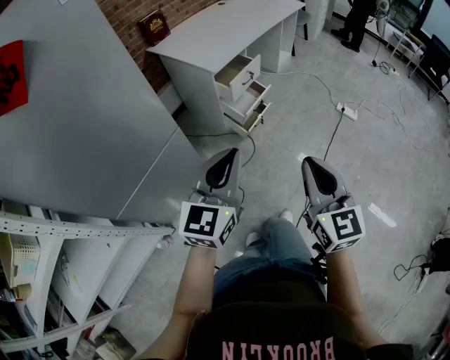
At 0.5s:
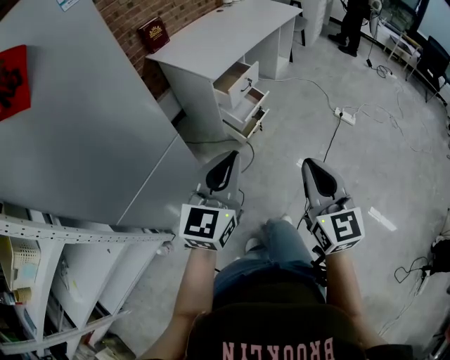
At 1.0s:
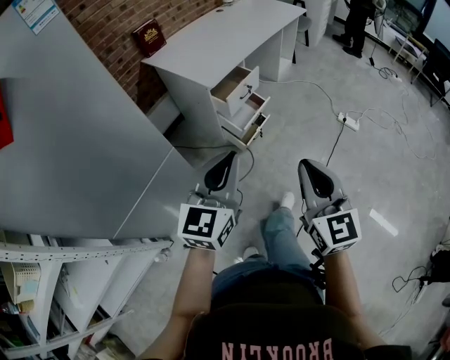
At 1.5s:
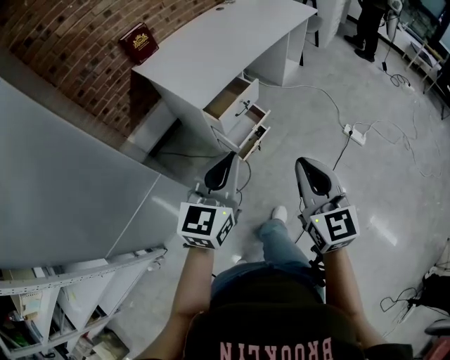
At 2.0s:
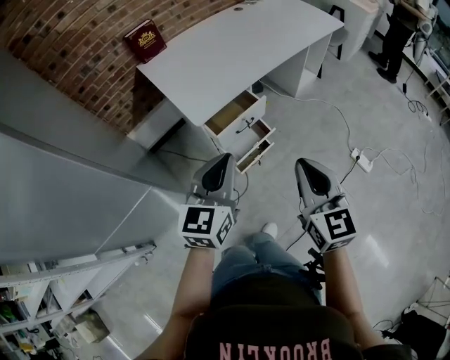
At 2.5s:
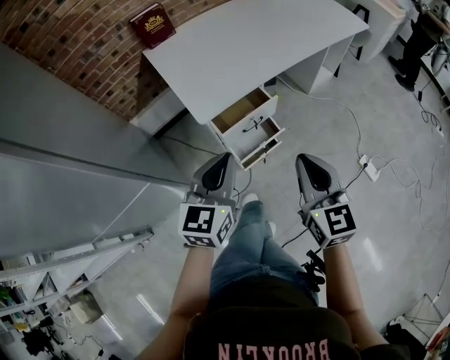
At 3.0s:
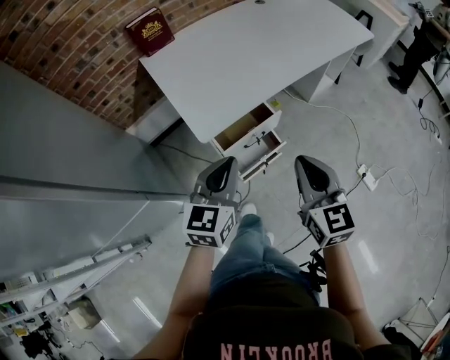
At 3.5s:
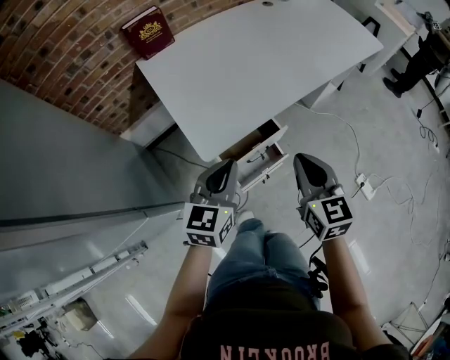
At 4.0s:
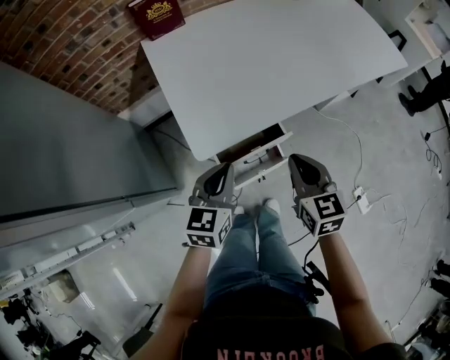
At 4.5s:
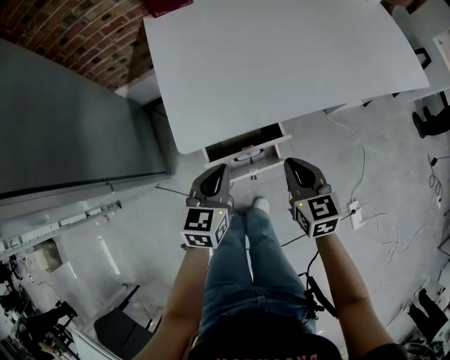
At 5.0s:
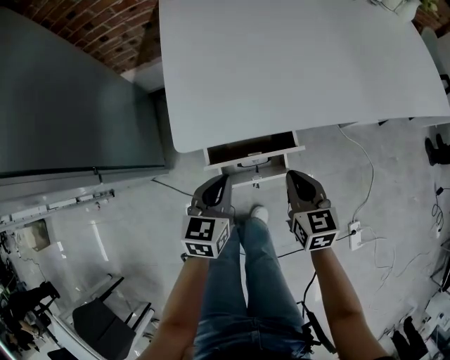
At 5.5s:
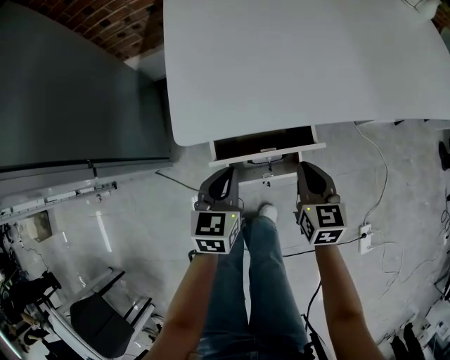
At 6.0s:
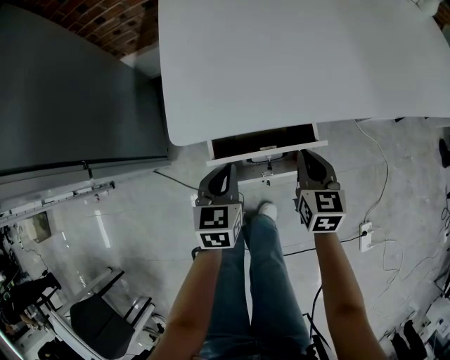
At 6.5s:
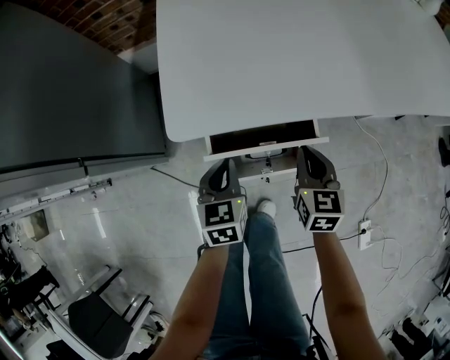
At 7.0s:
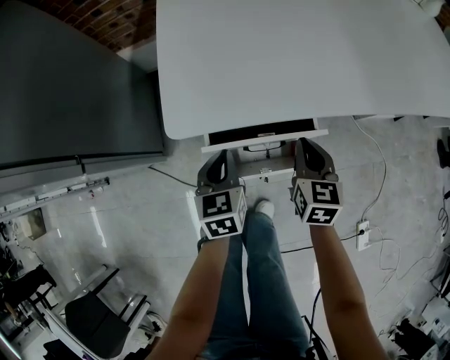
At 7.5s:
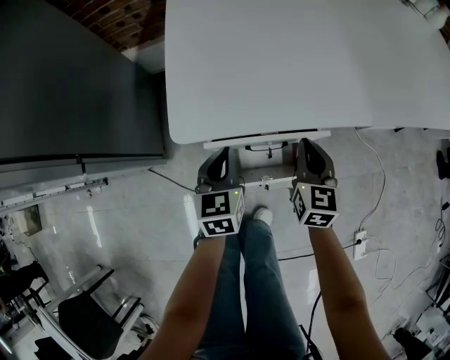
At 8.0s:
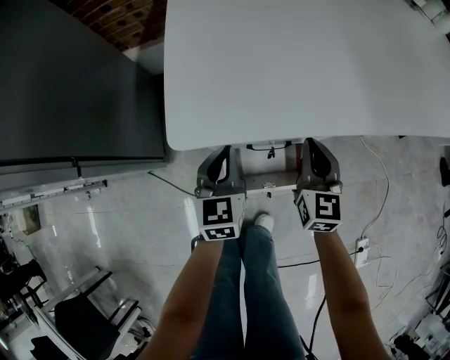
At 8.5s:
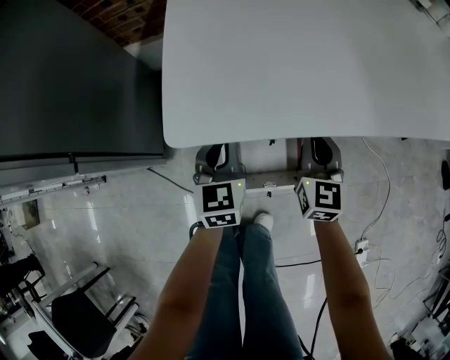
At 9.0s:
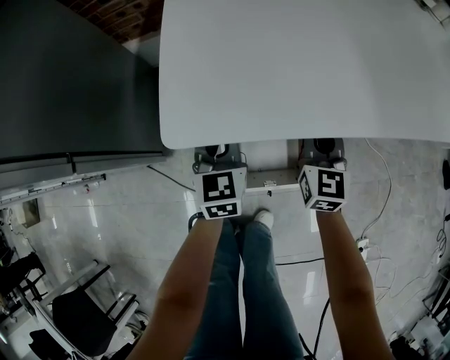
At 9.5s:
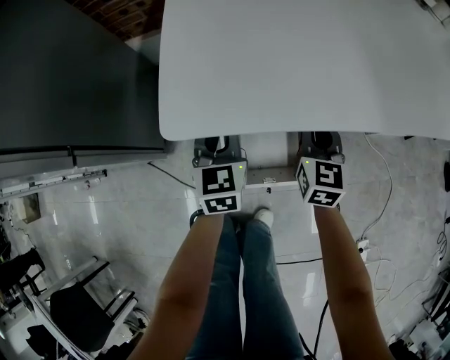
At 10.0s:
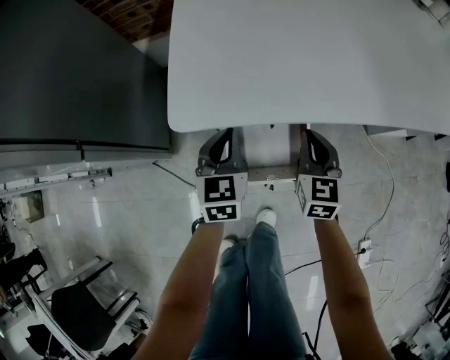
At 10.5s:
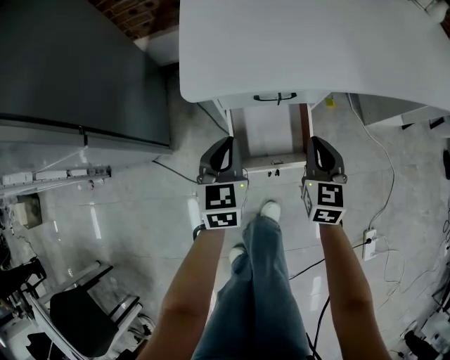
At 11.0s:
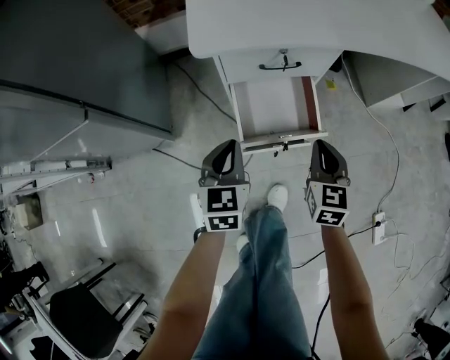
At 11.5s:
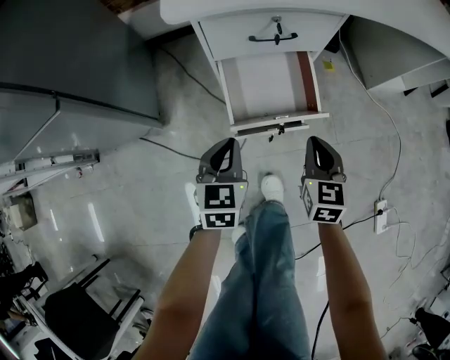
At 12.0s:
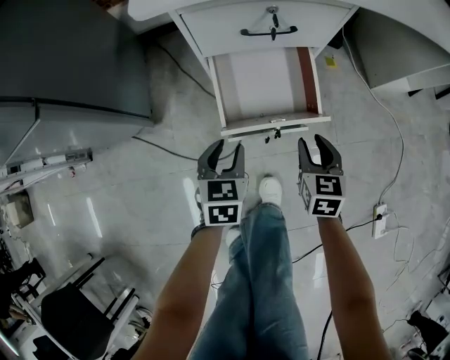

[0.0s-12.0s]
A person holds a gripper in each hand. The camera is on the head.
0.0s to 2.0s: Both grippers travel together forward, some 40 cm.
2.0s to 4.0s: The grippers both shift forward and downward by about 30 cm. The left gripper turns by some 20 degrees. Meanwhile the right gripper changes its angle by roughly 20 degrees.
4.0s to 6.0s: Both grippers travel together downward, some 25 cm. The left gripper turns by about 30 degrees.
6.0s to 8.0s: Both grippers move forward, about 5 cm.
8.0s to 10.0s: The grippers move only a little.
10.0s to 12.0s: The grippers both shift backward and downward by approximately 25 cm. The right gripper opens up. Meanwhile the left gripper opens up.

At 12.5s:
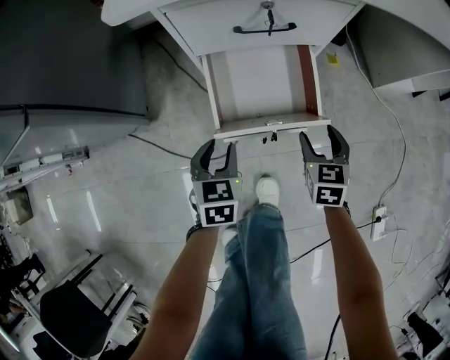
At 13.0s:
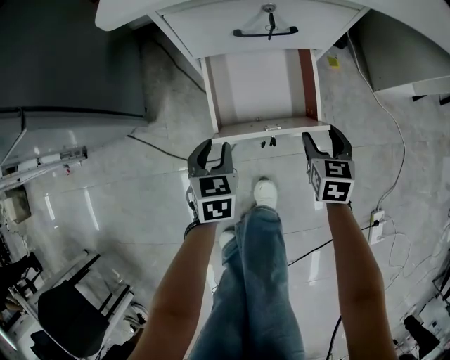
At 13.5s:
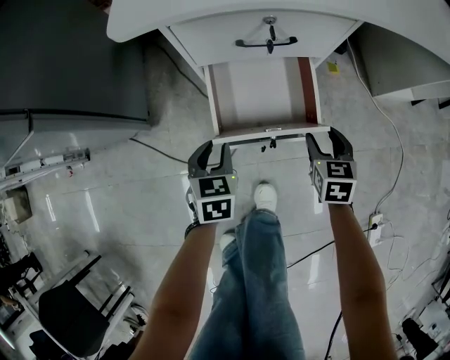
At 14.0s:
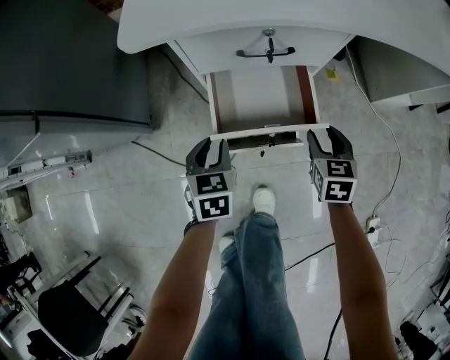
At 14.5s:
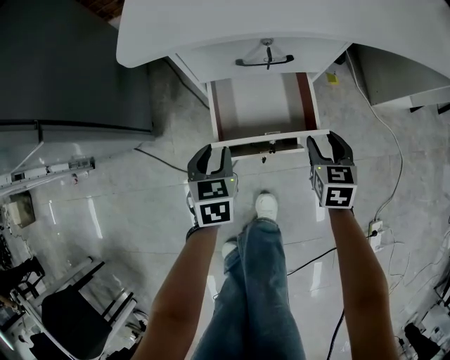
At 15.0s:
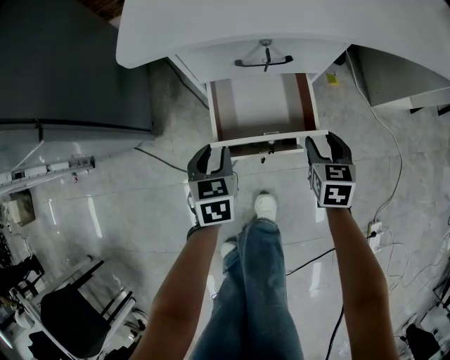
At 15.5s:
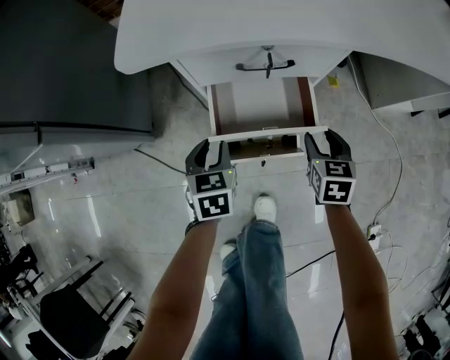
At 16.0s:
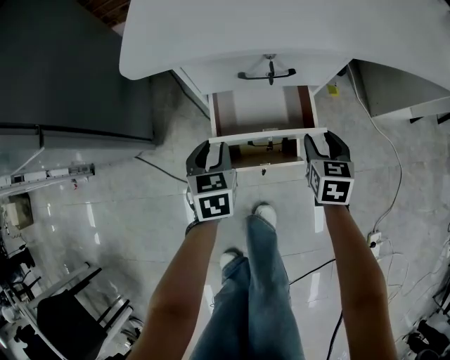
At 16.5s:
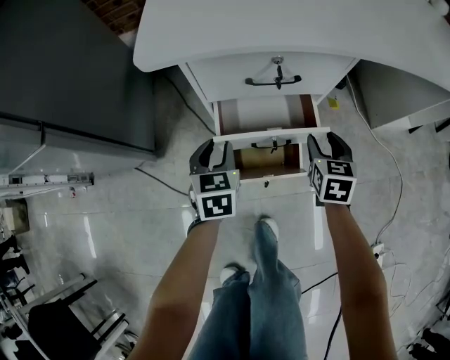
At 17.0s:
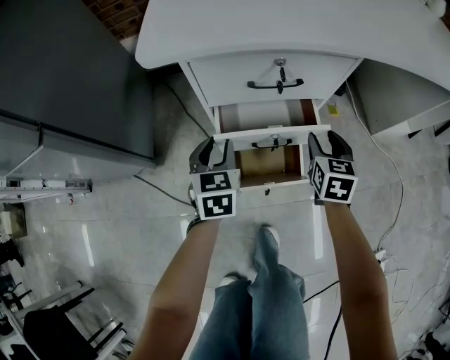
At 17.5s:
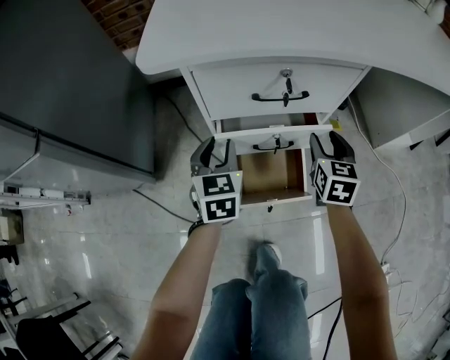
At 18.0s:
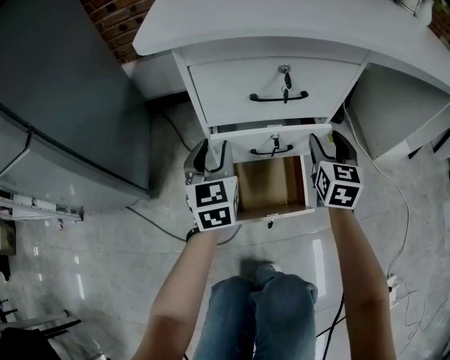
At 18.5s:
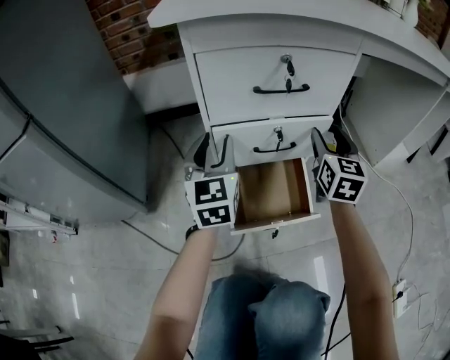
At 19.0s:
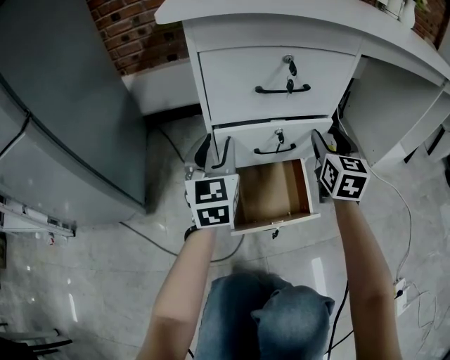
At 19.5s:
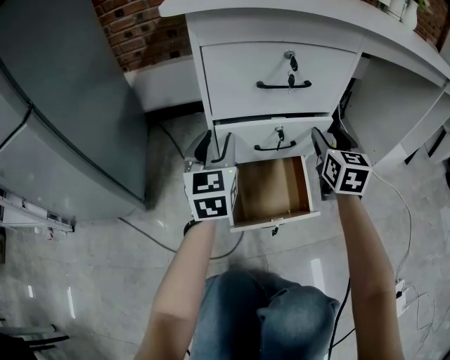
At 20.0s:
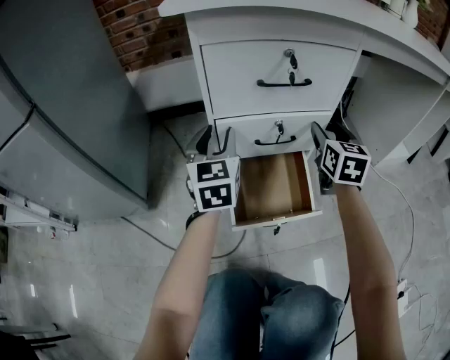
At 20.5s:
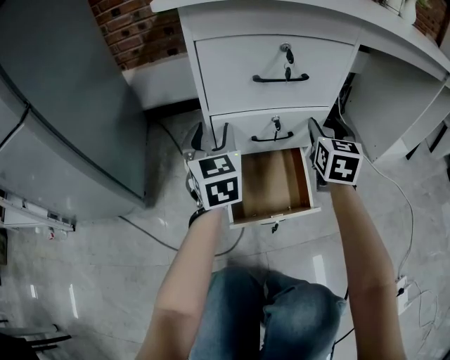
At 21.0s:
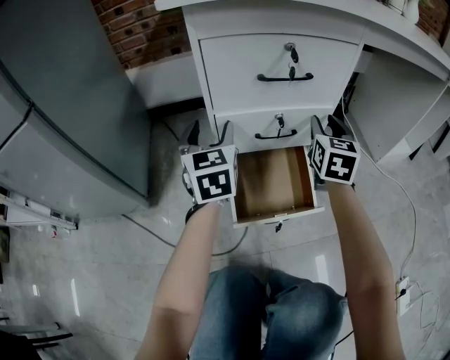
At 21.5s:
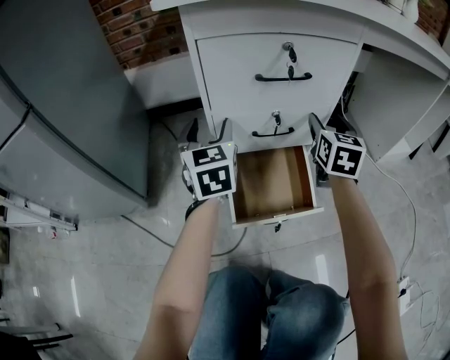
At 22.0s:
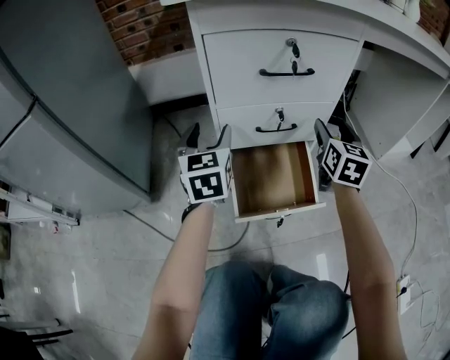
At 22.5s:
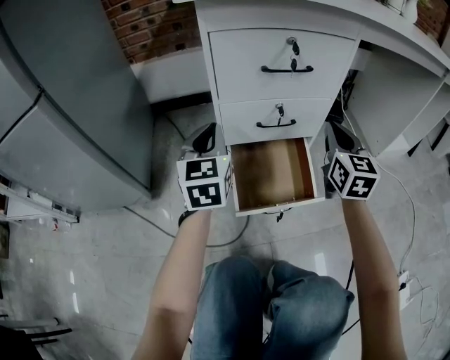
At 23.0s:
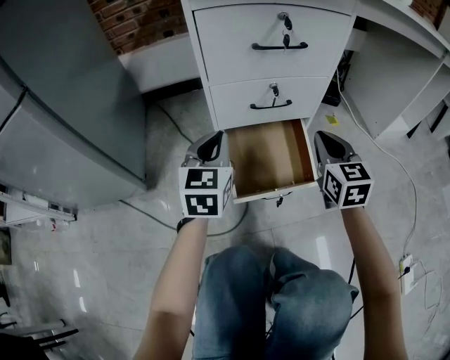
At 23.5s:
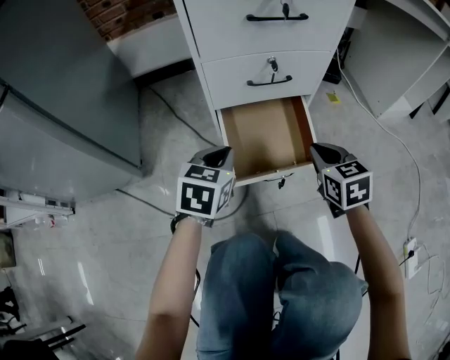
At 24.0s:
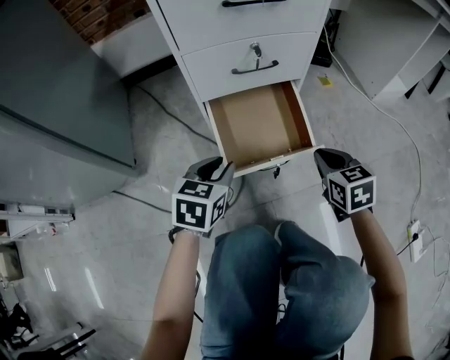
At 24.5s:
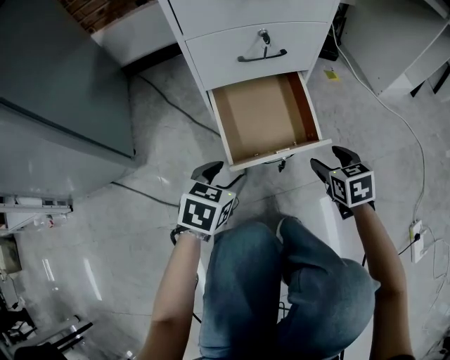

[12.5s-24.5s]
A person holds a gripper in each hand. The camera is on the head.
12.5s to 14.5s: The right gripper ends up about 5 cm from where it was. The left gripper moves roughly 5 cm.
14.5s to 16.5s: Both grippers travel together forward, some 5 cm.
16.5s to 18.5s: Both grippers move forward, some 5 cm. The left gripper points its fingers about 30 degrees further upward. Meanwhile the right gripper turns by roughly 30 degrees.
18.5s to 20.5s: The grippers stay close to where they were, moving slightly.
20.5s to 22.5s: The left gripper closes up; the right gripper goes about 5 cm backward, and closes.
22.5s to 24.5s: Both grippers travel together downward and backward, about 30 cm. The right gripper points its fingers roughly 40 degrees further downward, and opens. Meanwhile the left gripper points its fingers roughly 40 degrees further downward, and opens.

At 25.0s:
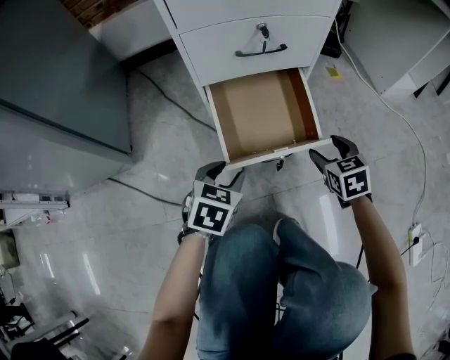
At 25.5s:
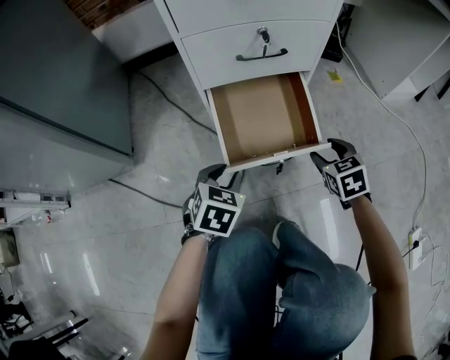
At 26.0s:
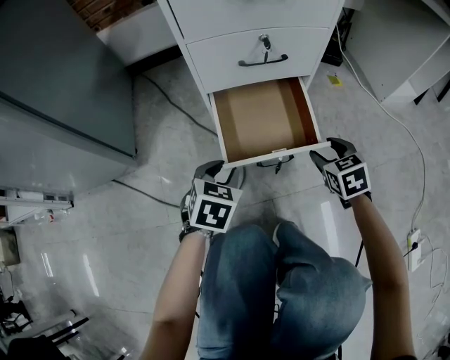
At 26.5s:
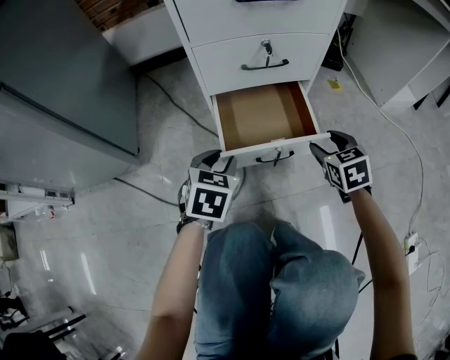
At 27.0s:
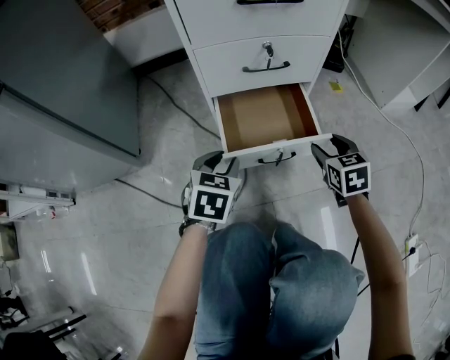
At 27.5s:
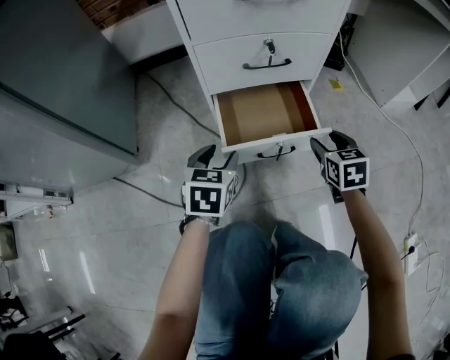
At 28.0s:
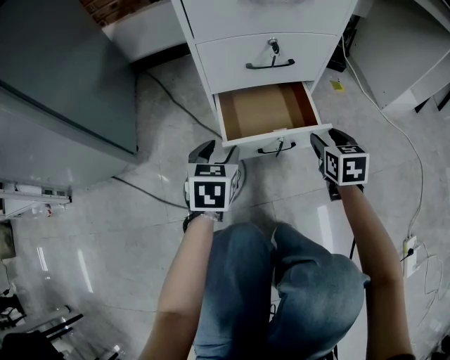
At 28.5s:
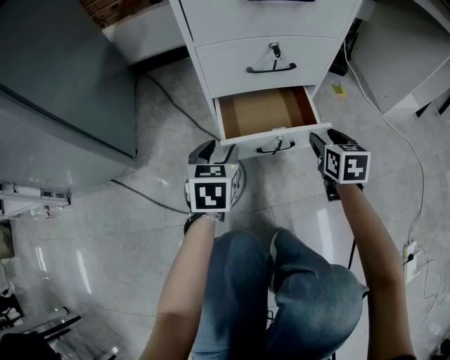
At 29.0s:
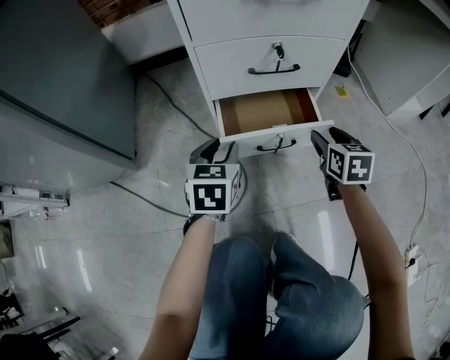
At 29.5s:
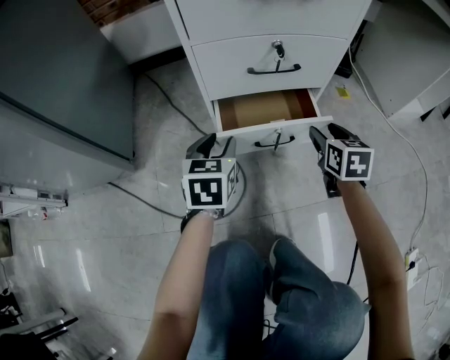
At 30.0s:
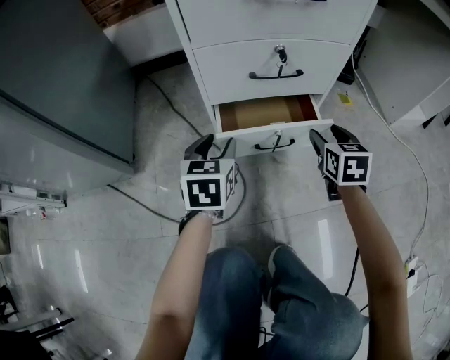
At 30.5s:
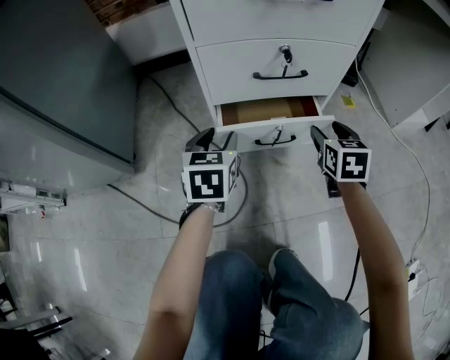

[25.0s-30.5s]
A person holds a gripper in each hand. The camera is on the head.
25.0s to 27.0s: The right gripper changes place by about 5 cm, while the left gripper is displaced upward by some 5 cm.
27.0s to 28.5s: There are only small adjustments of the grippers.
28.5s to 30.5s: Both grippers move forward, roughly 5 cm.
